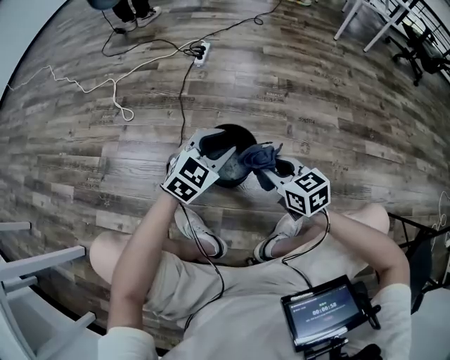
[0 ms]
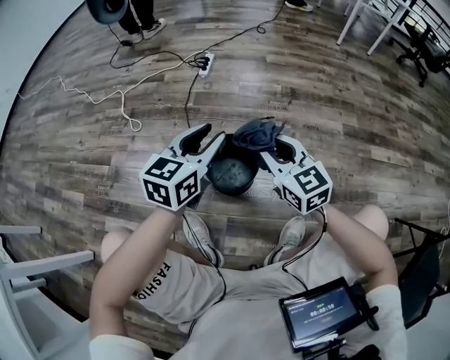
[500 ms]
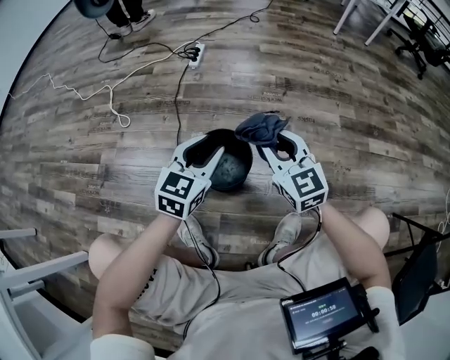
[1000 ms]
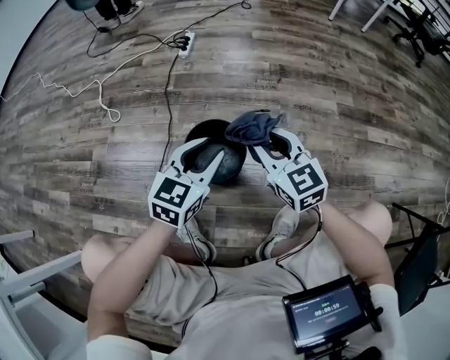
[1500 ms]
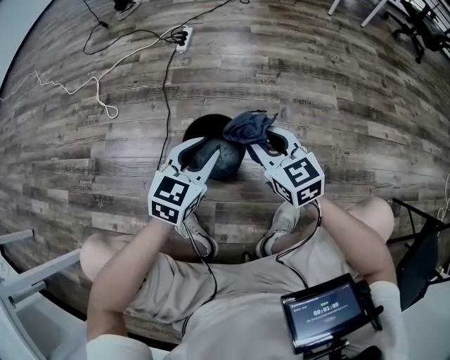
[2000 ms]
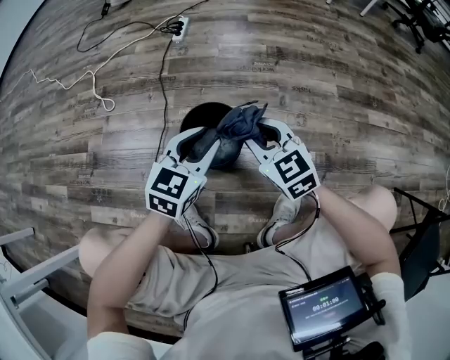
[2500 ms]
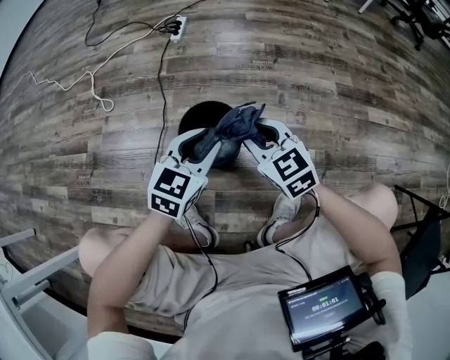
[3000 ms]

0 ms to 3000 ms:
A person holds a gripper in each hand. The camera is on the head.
0 ms to 1500 ms: The right gripper changes place by some 10 cm, and turns by roughly 20 degrees.
1500 ms to 3000 ms: The right gripper changes place by roughly 5 cm.

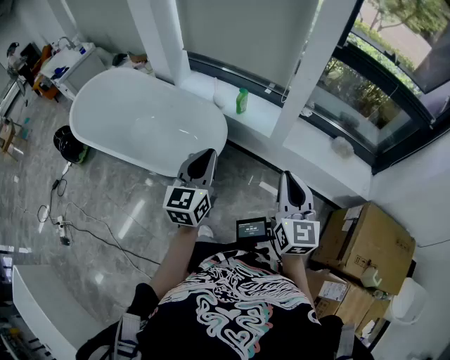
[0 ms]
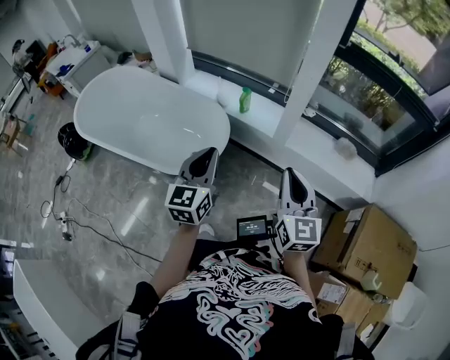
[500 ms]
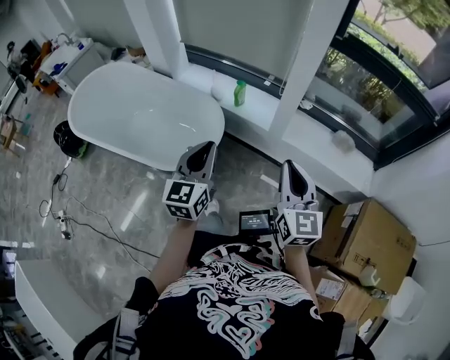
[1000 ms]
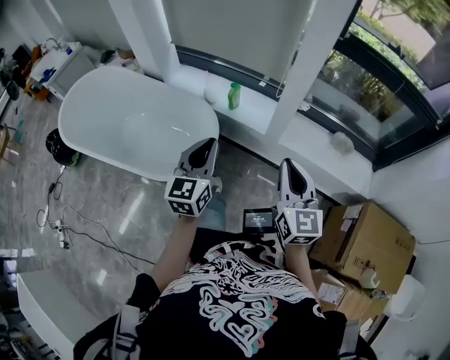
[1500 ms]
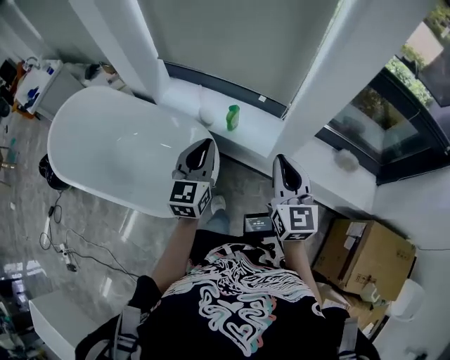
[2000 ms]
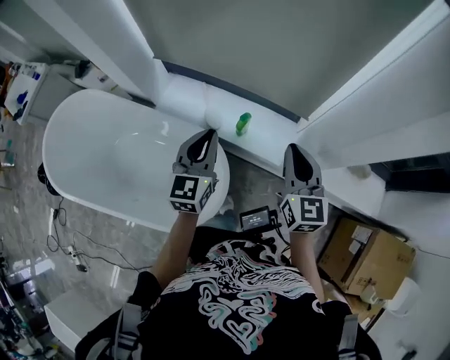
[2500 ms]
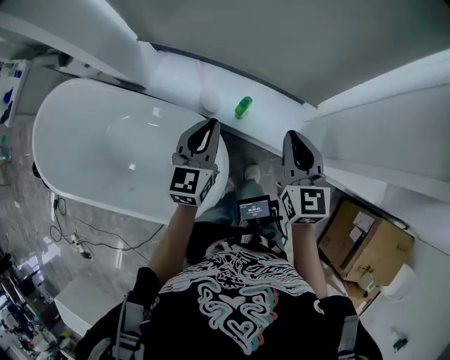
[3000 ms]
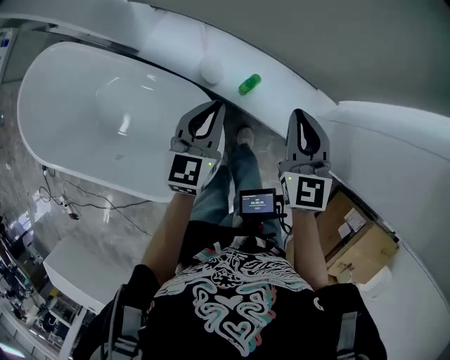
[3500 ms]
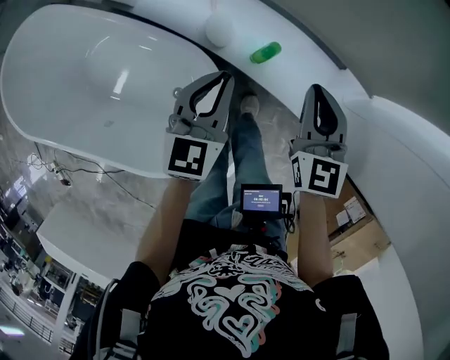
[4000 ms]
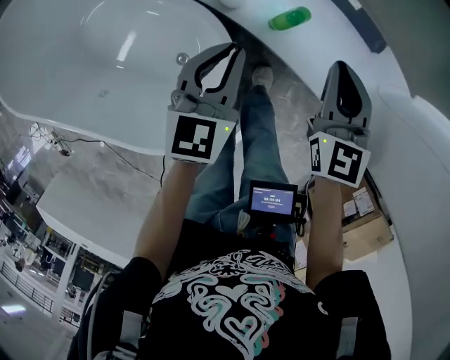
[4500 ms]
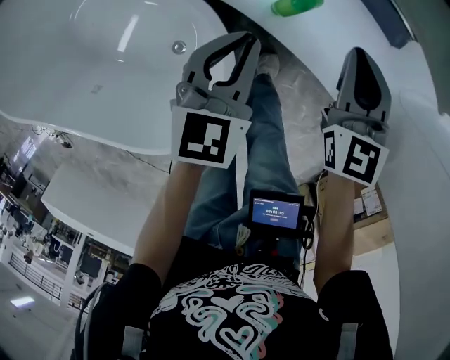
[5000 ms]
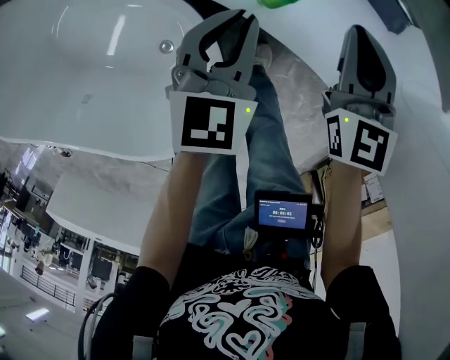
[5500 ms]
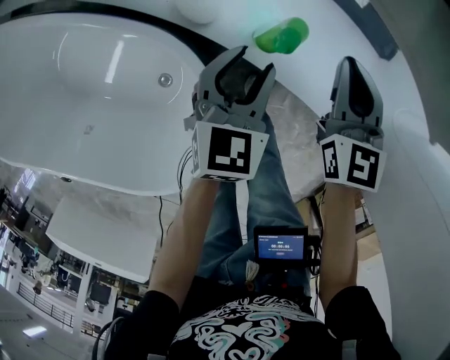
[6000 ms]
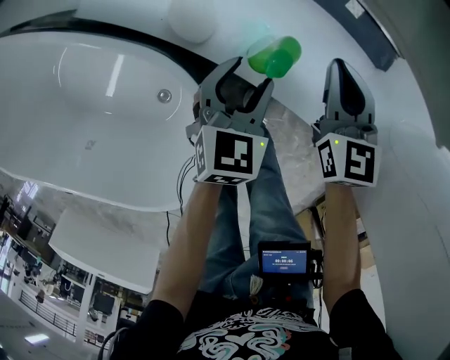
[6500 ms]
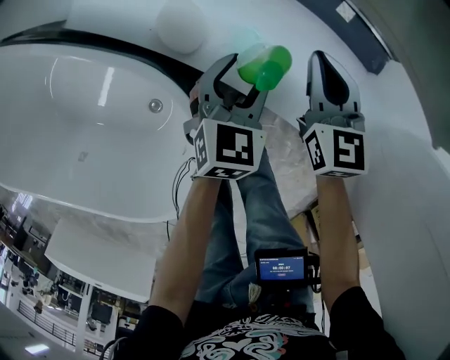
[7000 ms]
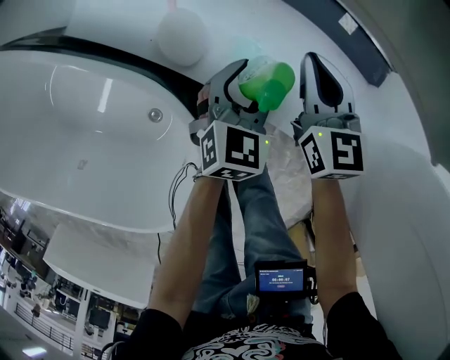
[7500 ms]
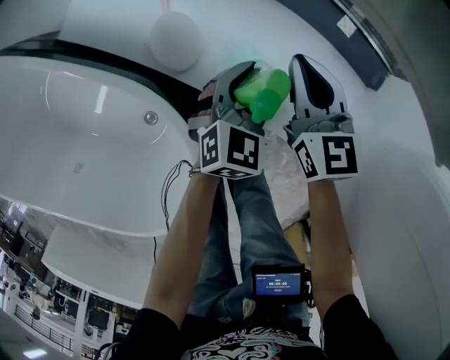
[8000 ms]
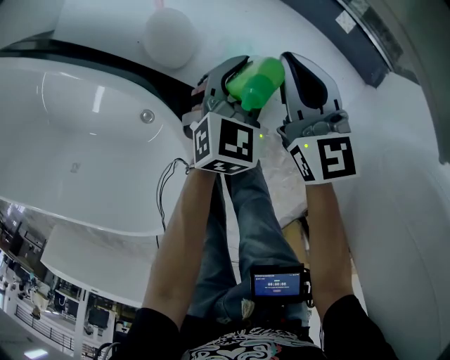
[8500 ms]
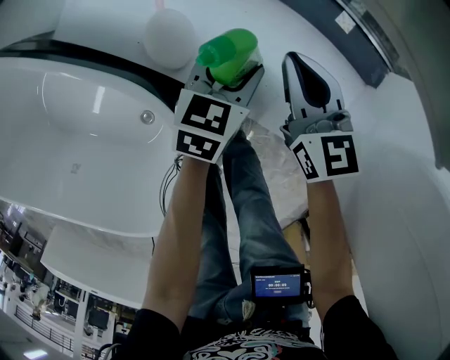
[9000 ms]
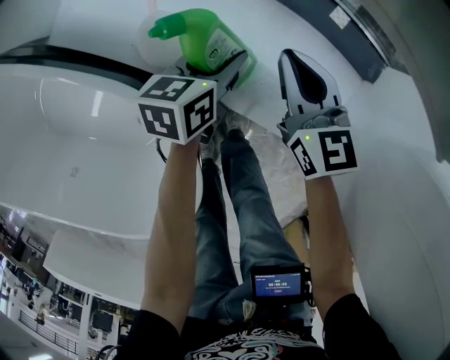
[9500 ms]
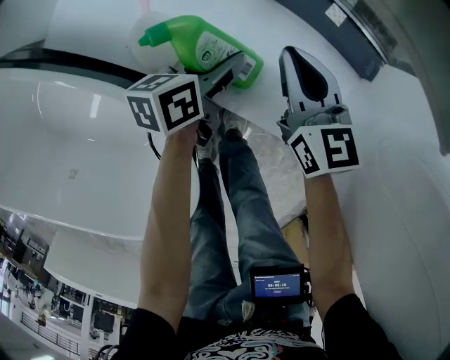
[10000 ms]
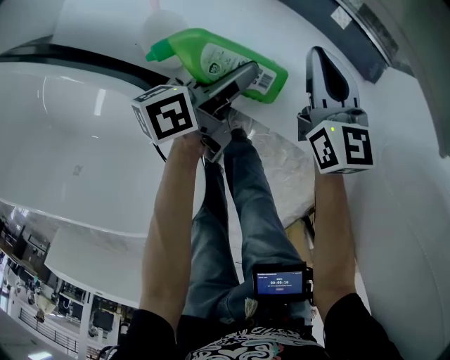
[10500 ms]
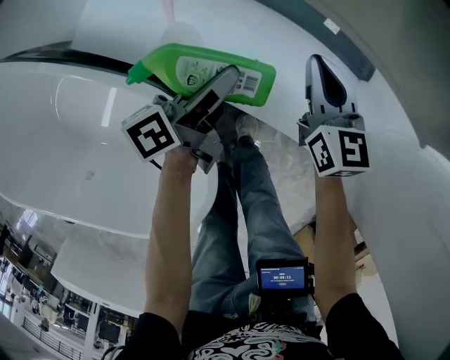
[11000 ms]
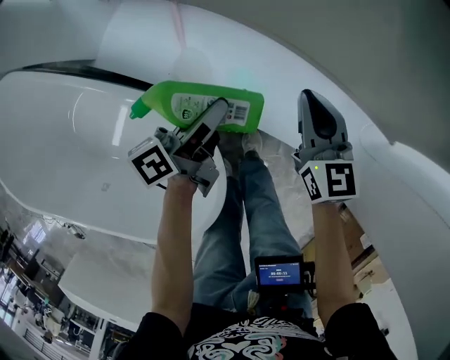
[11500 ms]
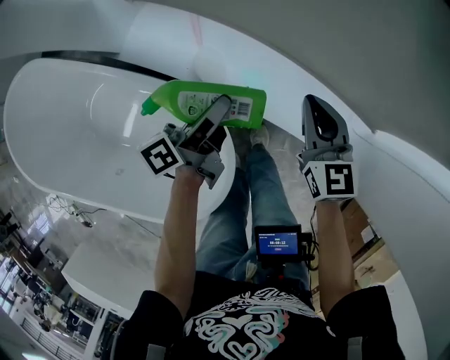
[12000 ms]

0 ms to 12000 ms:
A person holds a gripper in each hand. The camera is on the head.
0 ms to 2000 ms: The two grippers go roughly 30 cm forward.
2000 ms to 4000 ms: Both grippers travel together forward and downward, about 40 cm.
4000 ms to 6000 ms: Both grippers move downward, approximately 20 cm. The left gripper opens up.
6000 ms to 8000 ms: The left gripper shifts about 10 cm downward and forward. Meanwhile the right gripper shifts approximately 10 cm forward and downward.
8000 ms to 10000 ms: The left gripper shifts by about 5 cm, and rolls counterclockwise, seen from behind, by roughly 50 degrees.
10000 ms to 12000 ms: Both grippers move upward, approximately 25 cm. The left gripper turns by about 30 degrees.

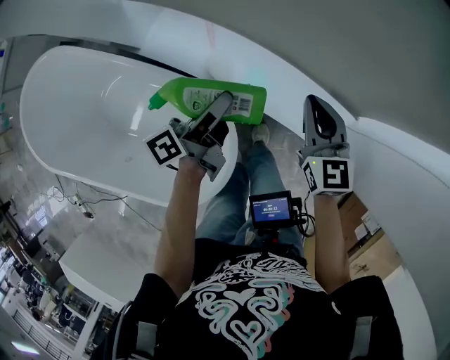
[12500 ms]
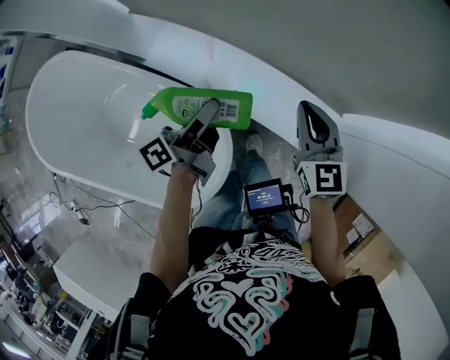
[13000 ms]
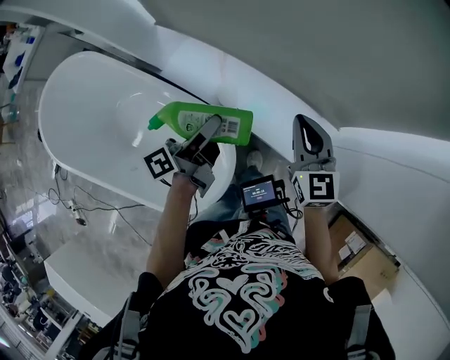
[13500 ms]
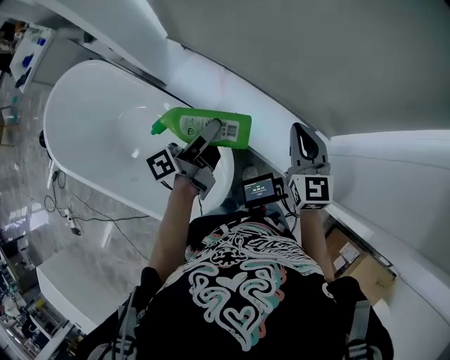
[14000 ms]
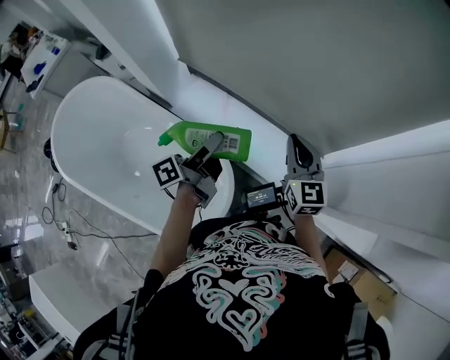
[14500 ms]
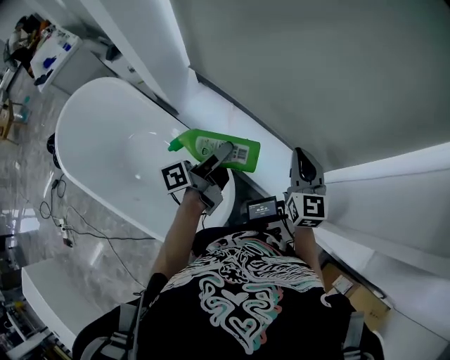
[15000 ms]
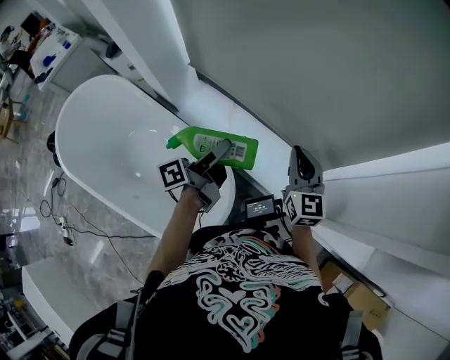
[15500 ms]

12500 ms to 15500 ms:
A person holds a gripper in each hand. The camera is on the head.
12500 ms to 14000 ms: Both grippers travel together upward and backward, about 20 cm.
14000 ms to 15500 ms: The grippers stay close to where they were, moving slightly.

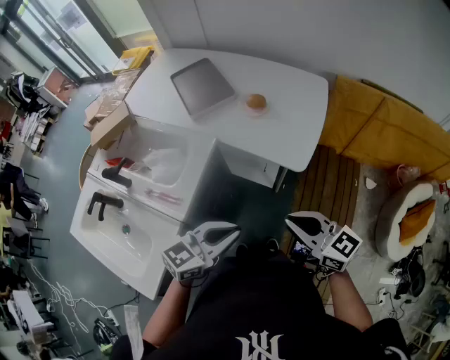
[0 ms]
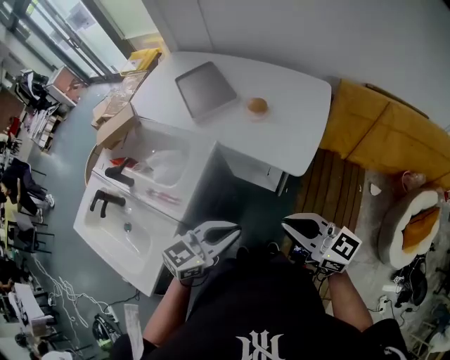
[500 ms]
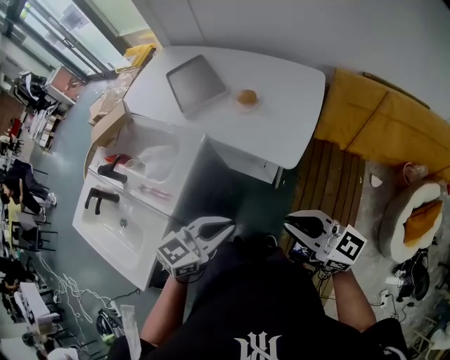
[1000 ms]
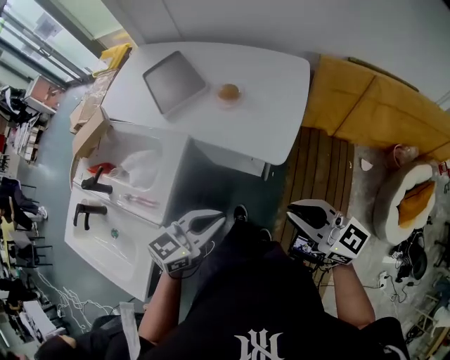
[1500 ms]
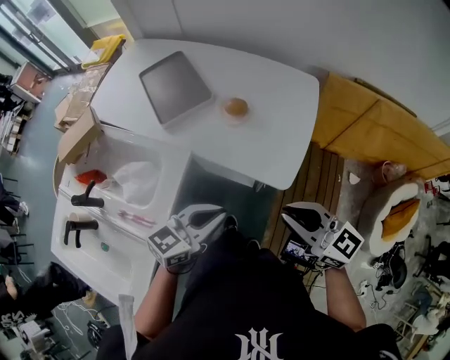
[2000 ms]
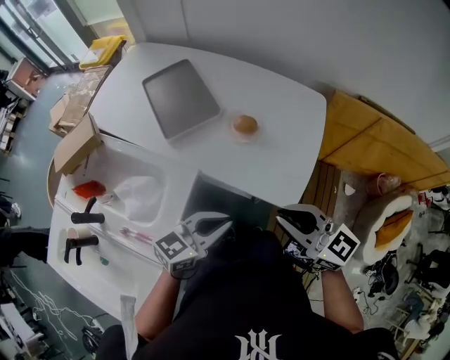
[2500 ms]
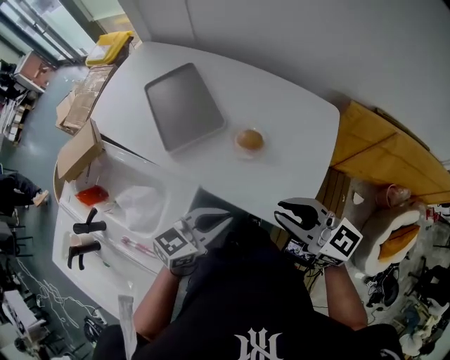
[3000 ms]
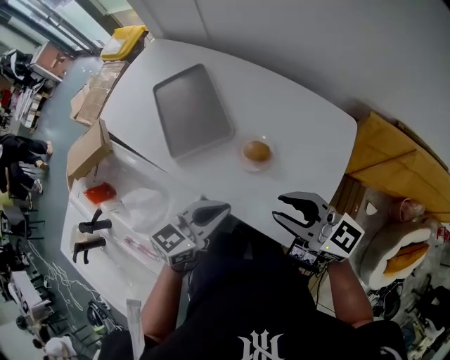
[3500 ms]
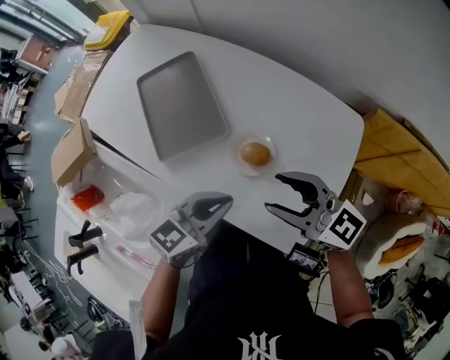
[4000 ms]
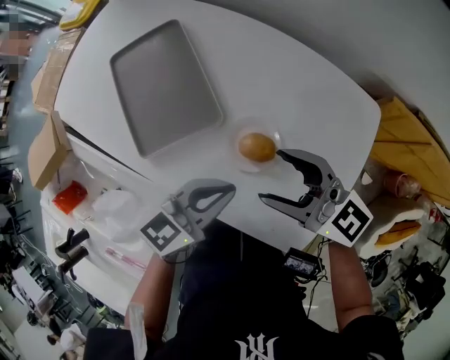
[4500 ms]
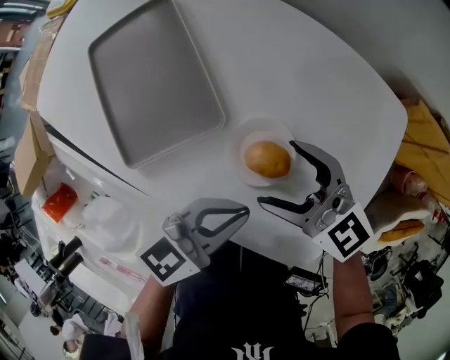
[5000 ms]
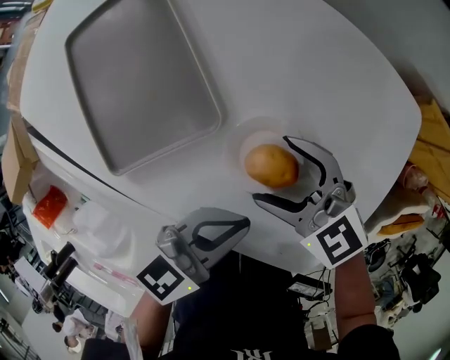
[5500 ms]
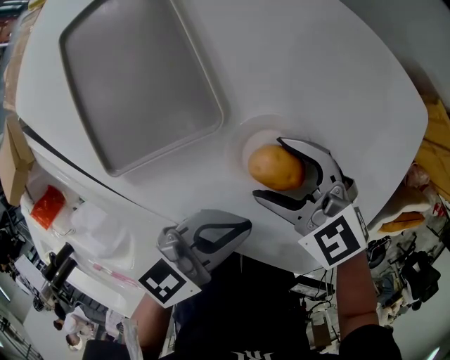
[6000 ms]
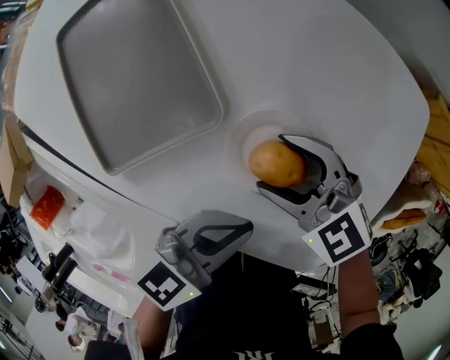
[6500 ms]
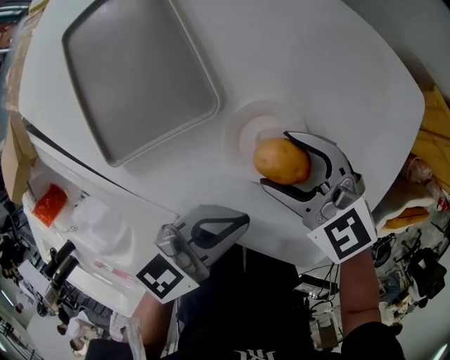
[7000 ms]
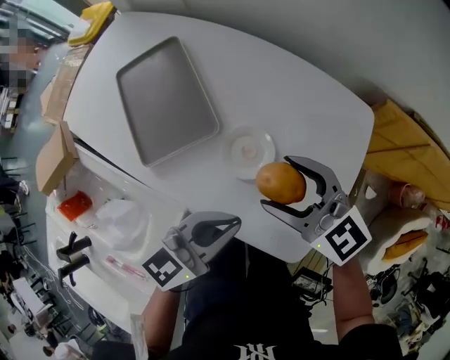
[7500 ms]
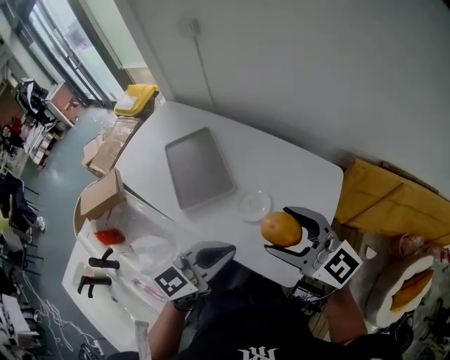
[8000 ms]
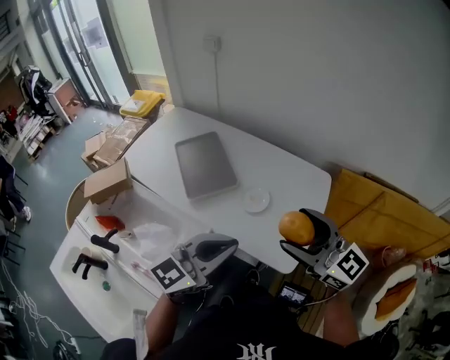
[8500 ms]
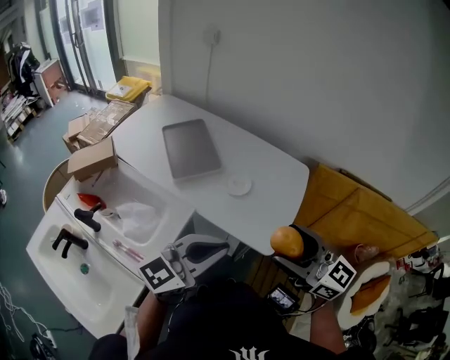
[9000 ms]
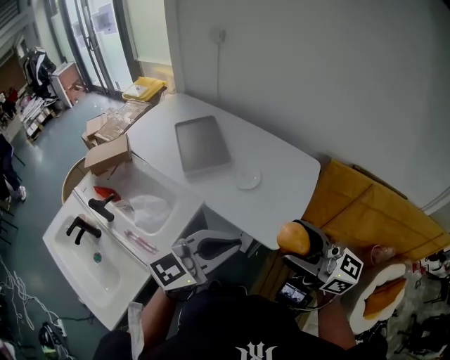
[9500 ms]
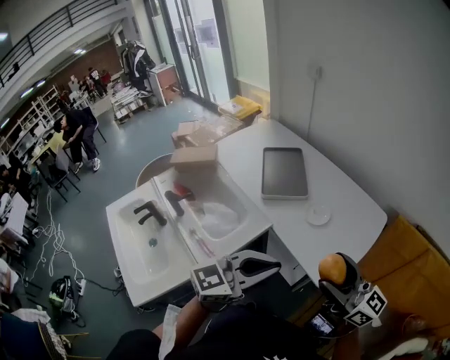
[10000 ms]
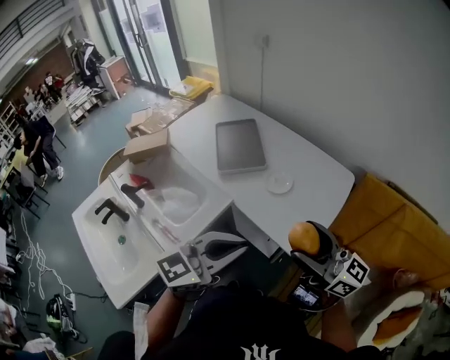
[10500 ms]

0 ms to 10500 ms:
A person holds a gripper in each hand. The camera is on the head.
0 ms to 2000 ms: Both grippers travel together forward, approximately 15 cm.
2000 ms to 4000 ms: Both grippers move forward, some 30 cm. The right gripper opens.
4000 ms to 6500 ms: The left gripper shifts some 15 cm downward, while the right gripper is displaced downward by approximately 25 cm, turns by about 30 degrees, and opens.
6500 ms to 8500 ms: Both grippers move upward, some 40 cm. The left gripper swivels roughly 30 degrees. Meanwhile the right gripper angles its fingers upward, by approximately 40 degrees.
8500 ms to 10500 ms: The two grippers go about 15 cm backward. The right gripper swivels approximately 30 degrees.
